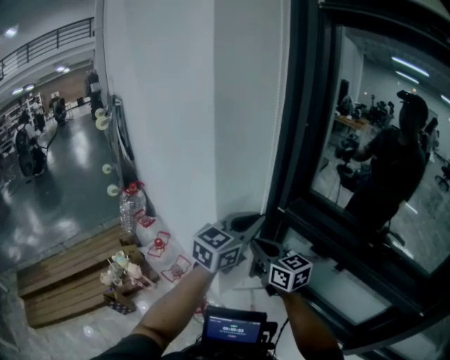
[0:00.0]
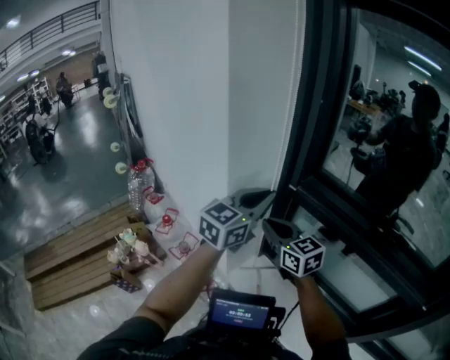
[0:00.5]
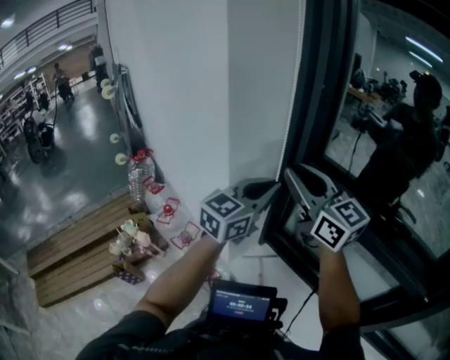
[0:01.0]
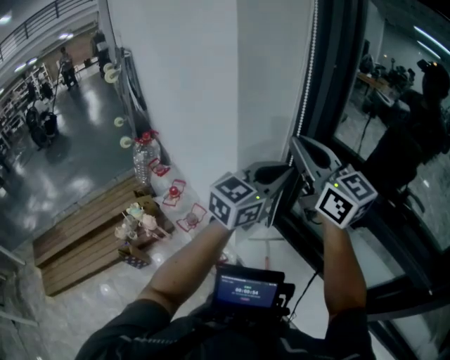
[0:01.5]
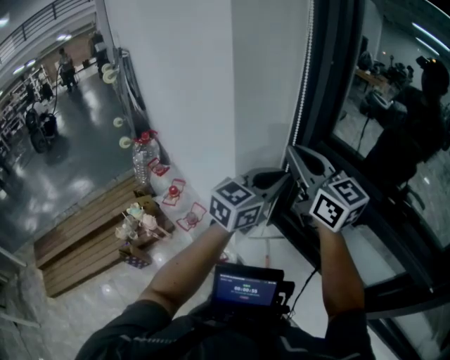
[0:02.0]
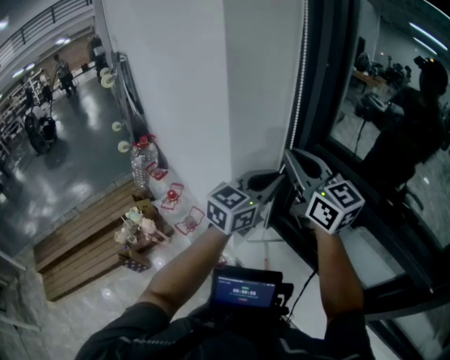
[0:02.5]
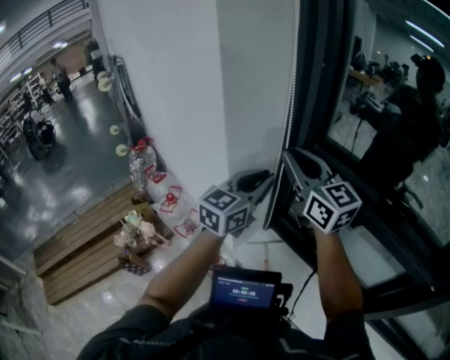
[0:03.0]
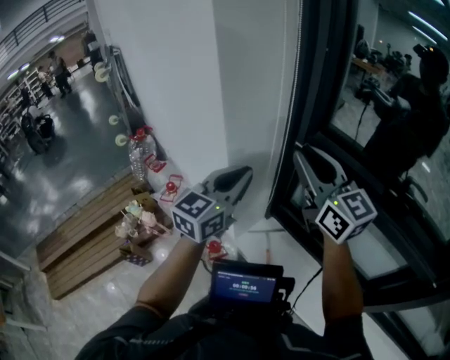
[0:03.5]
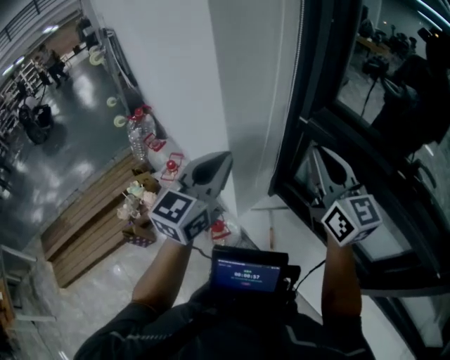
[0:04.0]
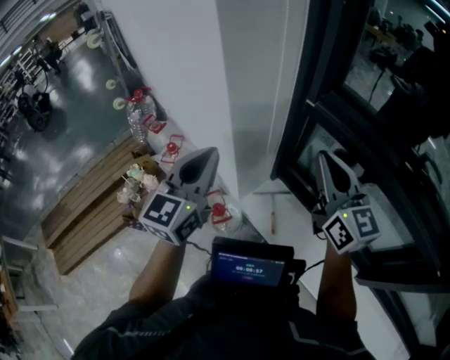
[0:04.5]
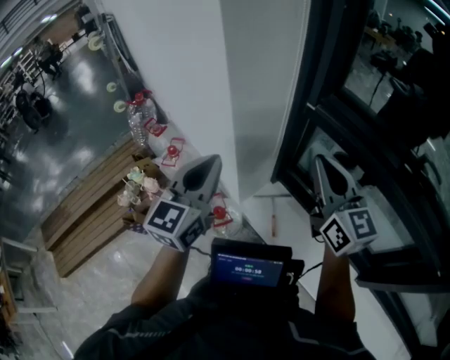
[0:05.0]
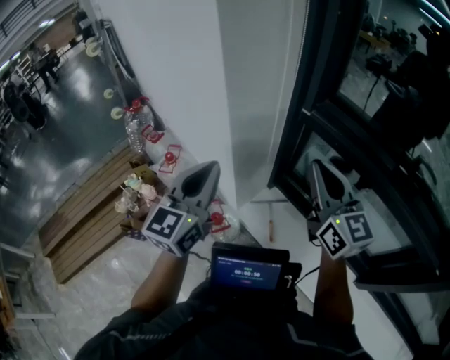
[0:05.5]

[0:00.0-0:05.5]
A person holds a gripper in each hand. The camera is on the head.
0:00.0 to 0:02.0: The right gripper travels upward by roughly 15 cm, and opens, then closes once more.
0:02.0 to 0:03.5: The left gripper is displaced to the left by roughly 10 cm.
0:03.5 to 0:05.5: The right gripper shifts approximately 10 cm downward. The left gripper travels to the left and backward by roughly 10 cm.

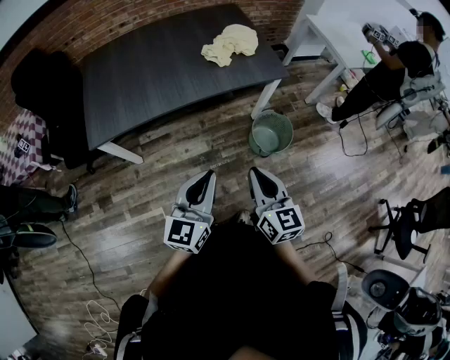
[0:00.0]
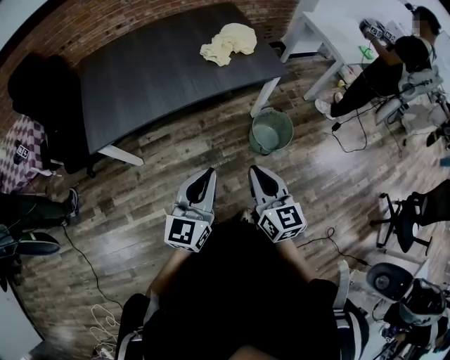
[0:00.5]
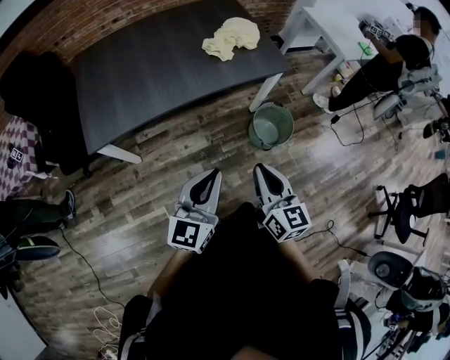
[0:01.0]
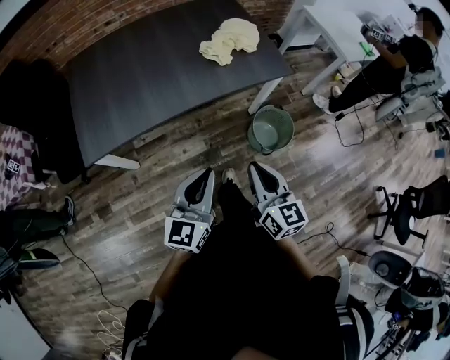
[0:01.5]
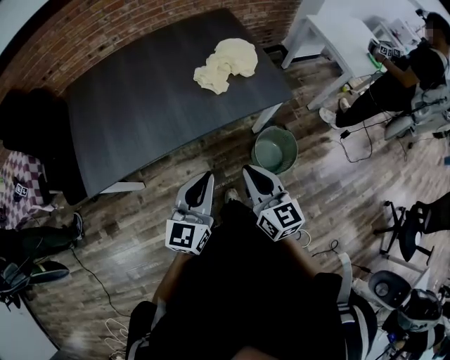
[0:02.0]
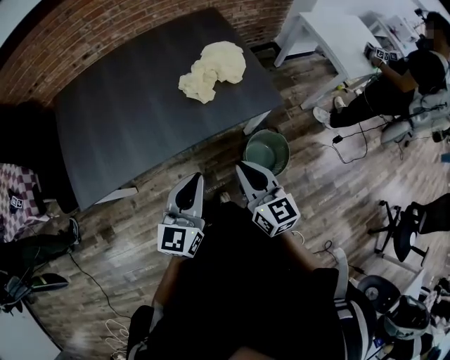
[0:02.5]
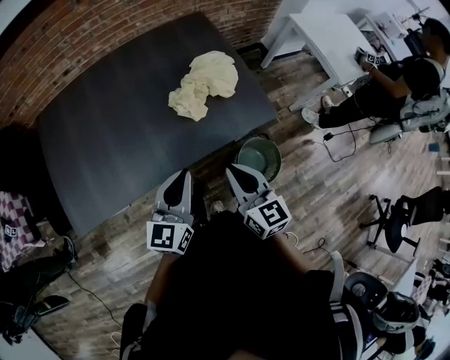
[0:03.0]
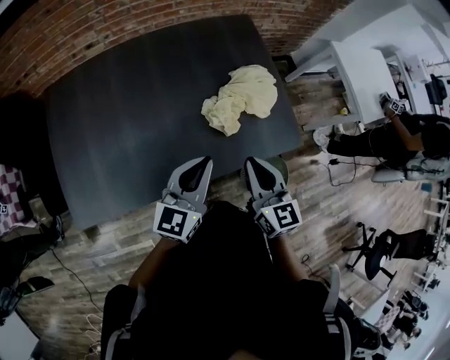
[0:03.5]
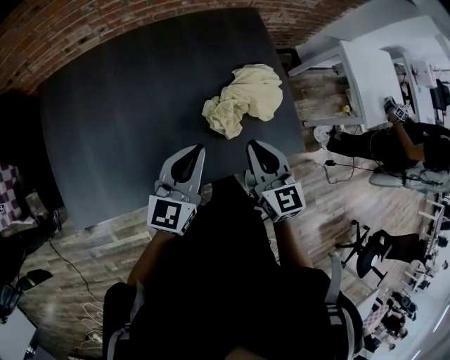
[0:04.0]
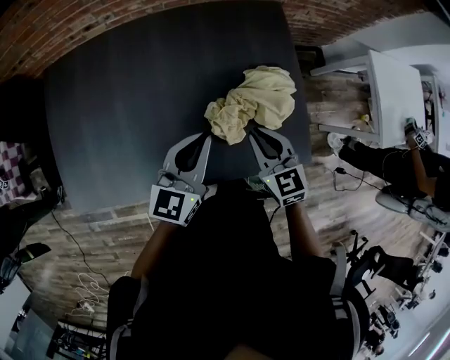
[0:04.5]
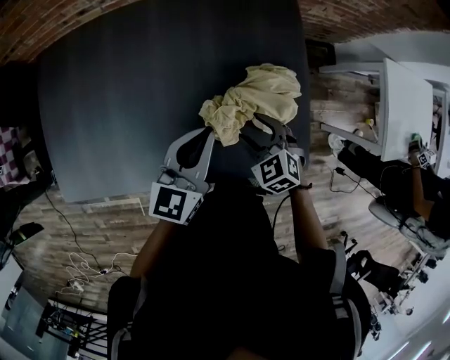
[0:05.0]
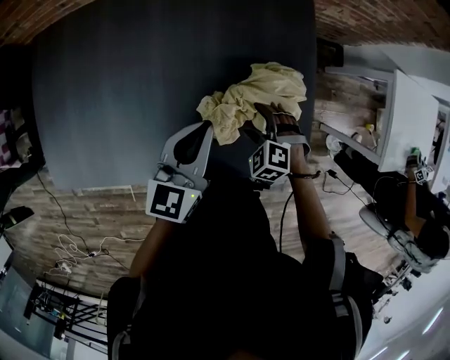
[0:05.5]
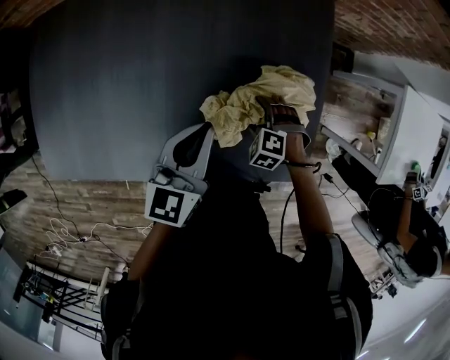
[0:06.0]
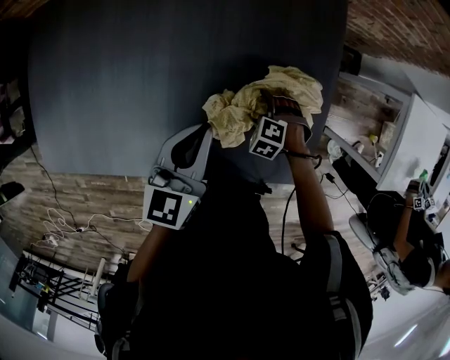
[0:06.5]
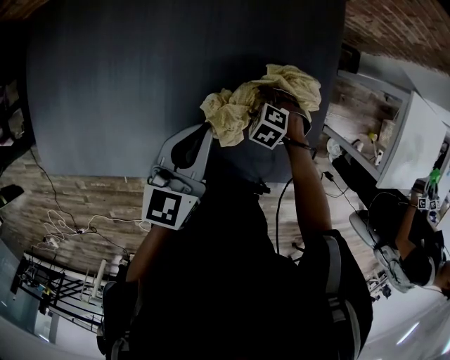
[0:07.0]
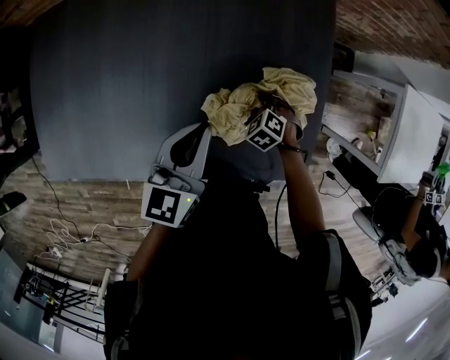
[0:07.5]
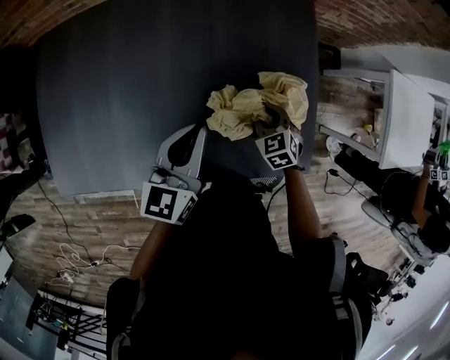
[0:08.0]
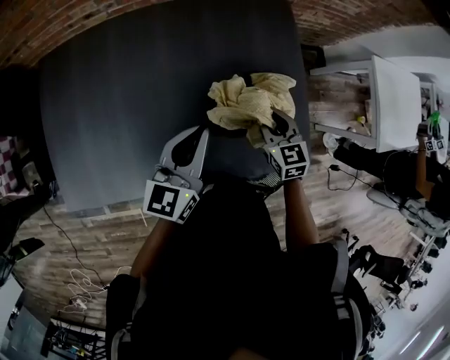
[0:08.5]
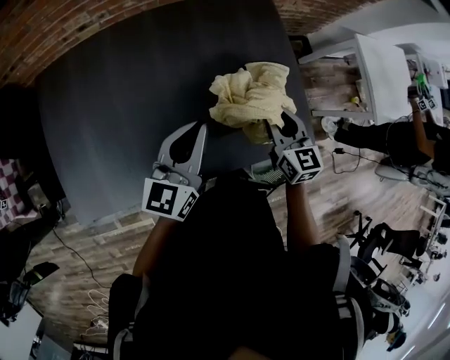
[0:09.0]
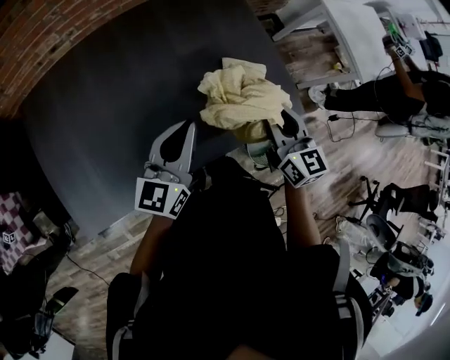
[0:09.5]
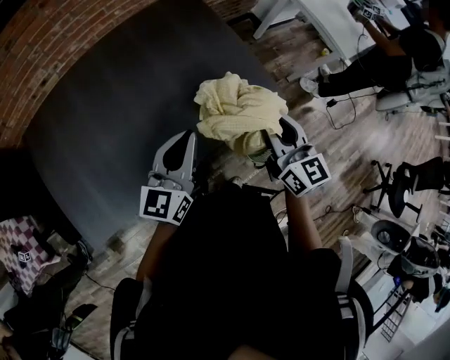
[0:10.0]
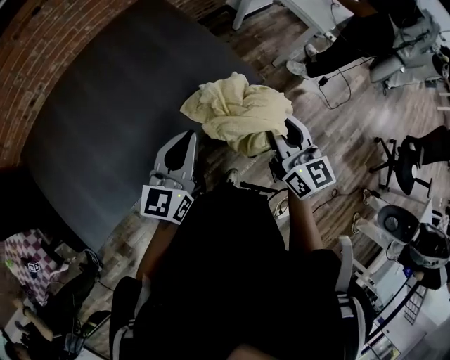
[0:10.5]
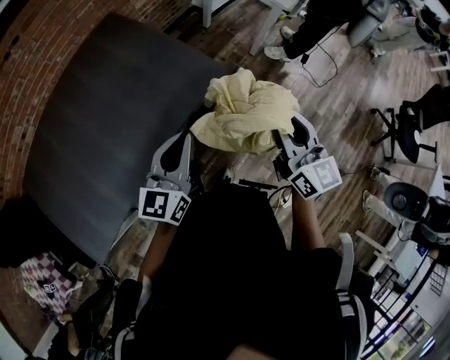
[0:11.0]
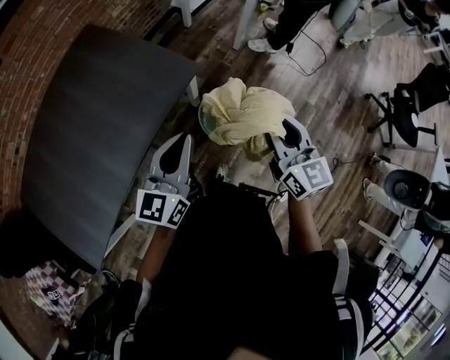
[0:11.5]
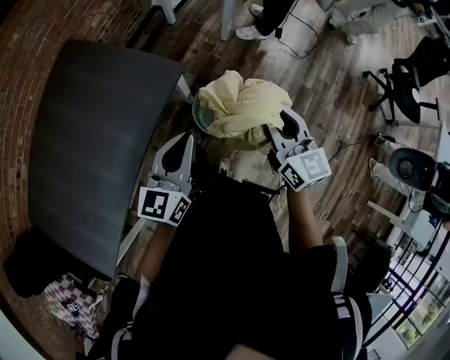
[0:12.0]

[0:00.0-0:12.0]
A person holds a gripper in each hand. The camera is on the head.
0:00.0 to 0:02.0: Both grippers travel together forward, approximately 20 cm.
0:02.0 to 0:04.0: Both grippers travel together forward, some 35 cm.
0:04.0 to 0:06.0: The left gripper changes place by about 15 cm, and swivels roughly 20 degrees; the right gripper travels downward by about 30 cm, tips its fingers downward by about 60 degrees, and opens.
0:06.0 to 0:08.0: The left gripper moves approximately 5 cm. The right gripper moves upward, about 5 cm, rotates around the line of its fingers by some 40 degrees, clockwise from behind, and closes.
0:08.0 to 0:10.0: The right gripper moves upward, about 25 cm, and points its fingers about 40 degrees further upward. The left gripper changes place by about 20 cm, and changes its angle by approximately 30 degrees.
0:10.0 to 0:12.0: The left gripper shifts by about 35 cm, and rotates approximately 30 degrees. The right gripper shifts by approximately 35 cm, and changes its angle by roughly 30 degrees.

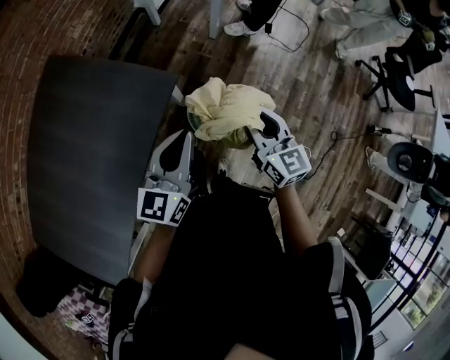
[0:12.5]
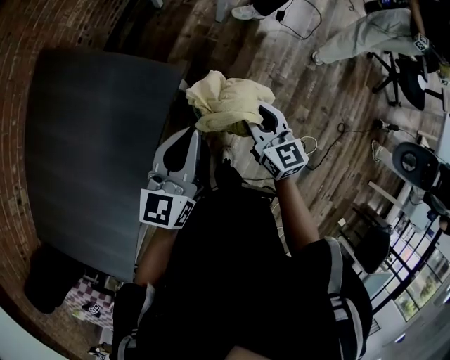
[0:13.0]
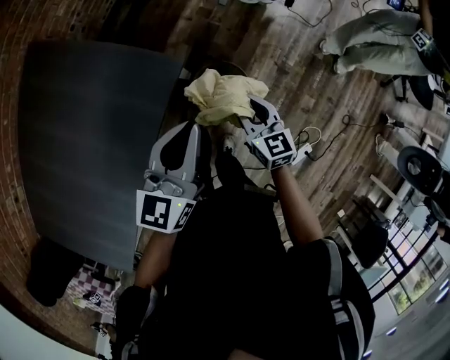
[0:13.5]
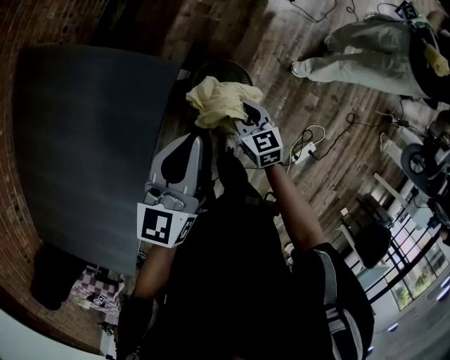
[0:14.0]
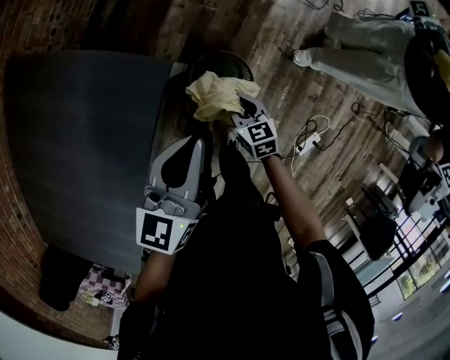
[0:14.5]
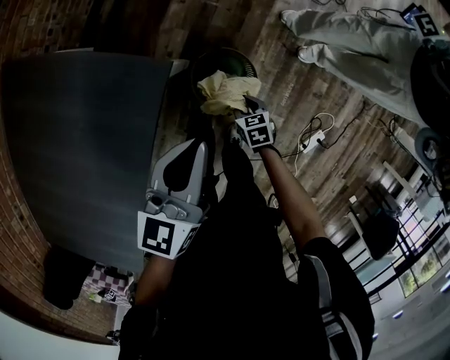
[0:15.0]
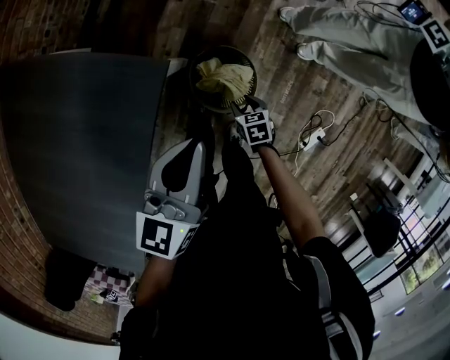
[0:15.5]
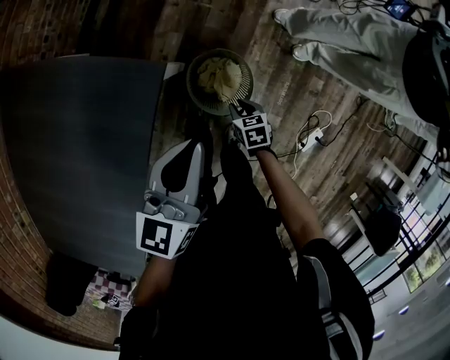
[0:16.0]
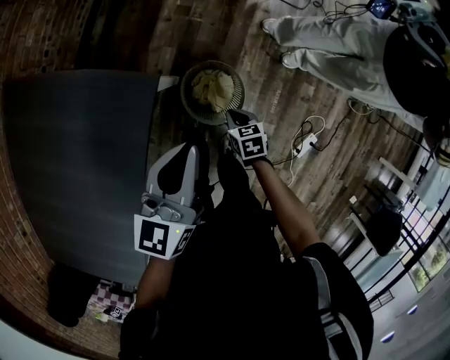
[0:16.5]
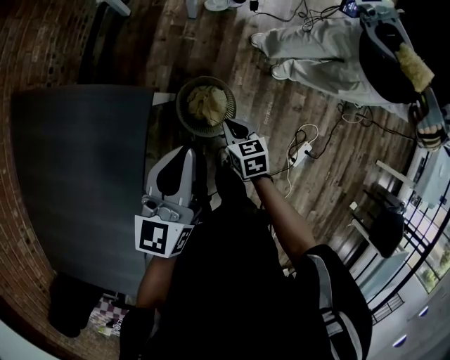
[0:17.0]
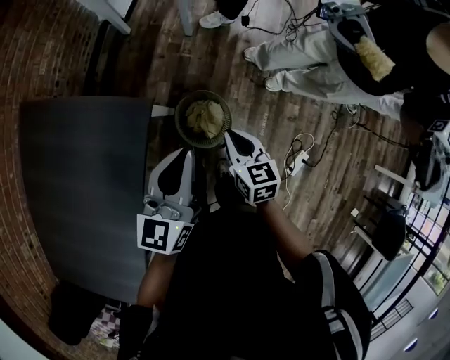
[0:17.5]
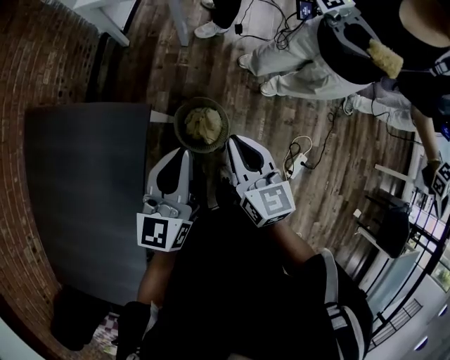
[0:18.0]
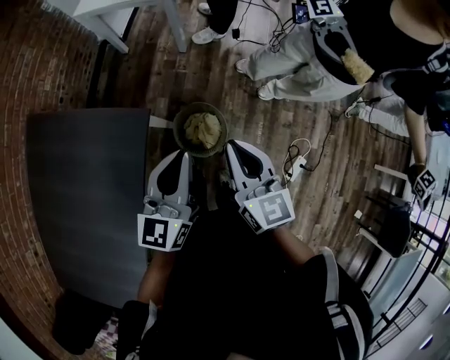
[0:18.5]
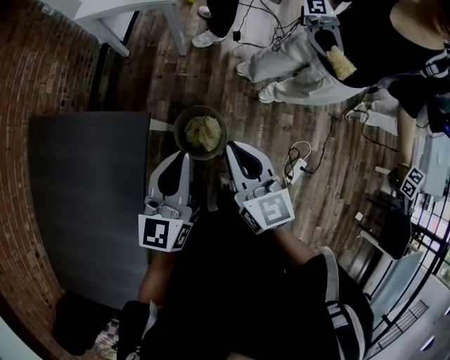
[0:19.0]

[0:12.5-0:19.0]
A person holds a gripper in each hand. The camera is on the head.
0:12.5 to 0:14.5: The right gripper is displaced downward by some 30 cm, and changes its angle by roughly 30 degrees; the left gripper is displaced downward and forward by roughly 15 cm.
0:14.5 to 0:17.0: The left gripper ends up some 5 cm from where it was, while the right gripper is displaced upward by roughly 5 cm.
0:17.0 to 0:19.0: The left gripper is displaced upward by roughly 5 cm. The right gripper travels upward by roughly 30 cm, and tips its fingers upward by approximately 30 degrees.

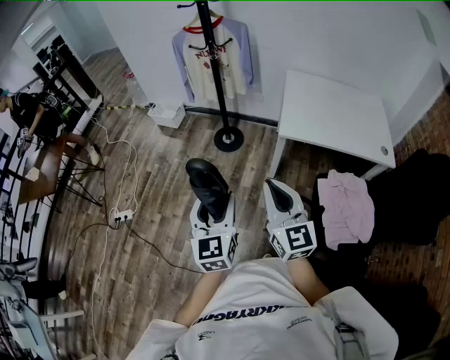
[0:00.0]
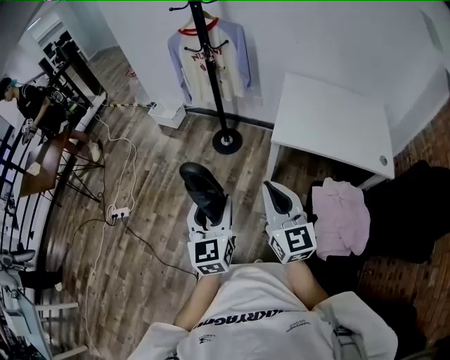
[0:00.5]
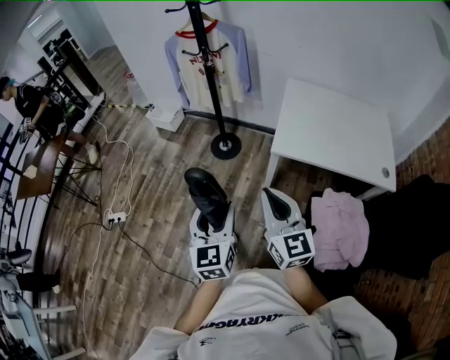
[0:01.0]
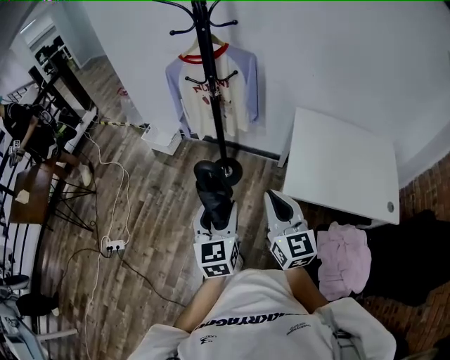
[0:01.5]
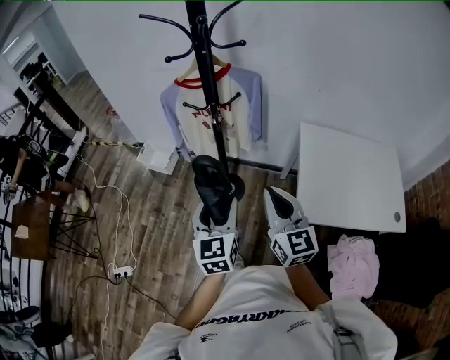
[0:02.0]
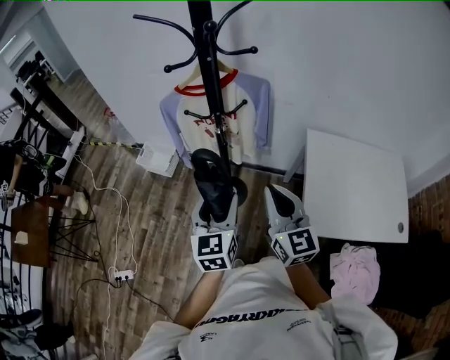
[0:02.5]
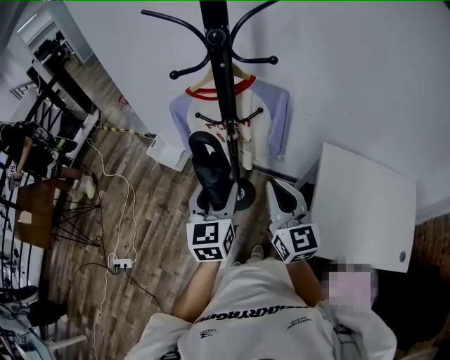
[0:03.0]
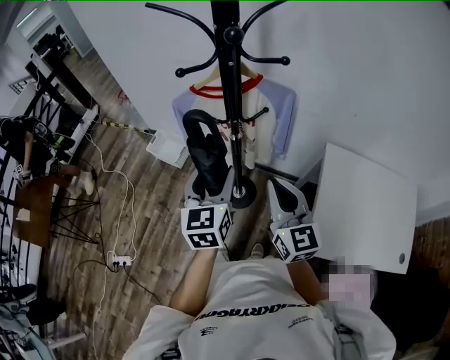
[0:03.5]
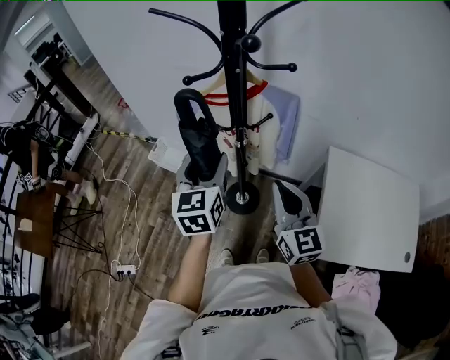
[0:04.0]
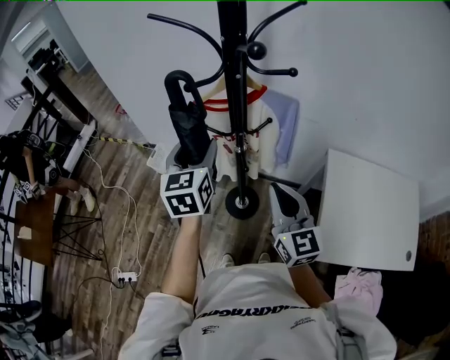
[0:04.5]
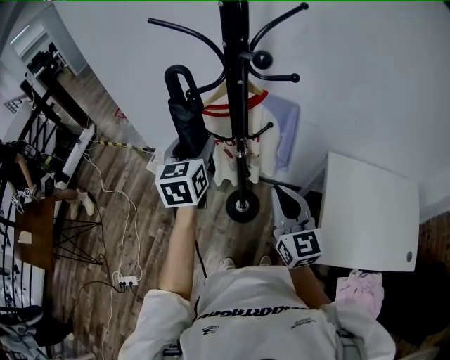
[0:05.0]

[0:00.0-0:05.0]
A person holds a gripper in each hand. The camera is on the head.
0:00.0 to 0:02.5: The two grippers travel together, forward, about 60 cm.
0:02.5 to 0:05.0: The left gripper heads forward, covering about 25 cm, while the right gripper shifts approximately 15 cm forward.
